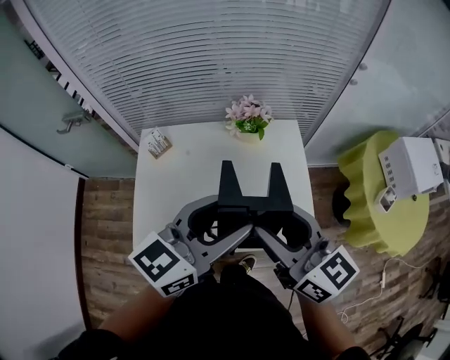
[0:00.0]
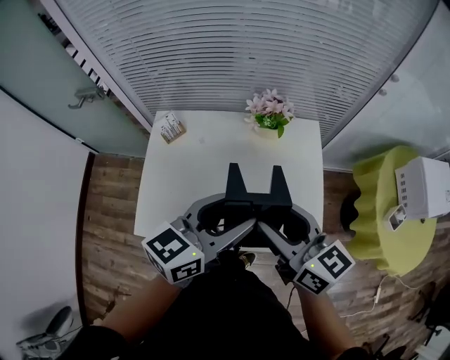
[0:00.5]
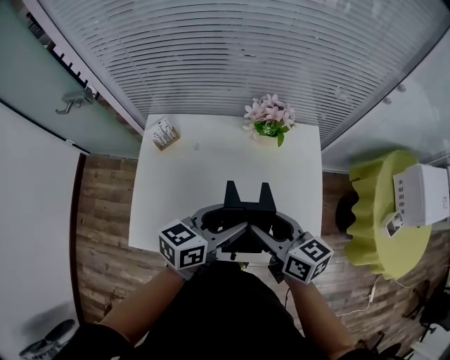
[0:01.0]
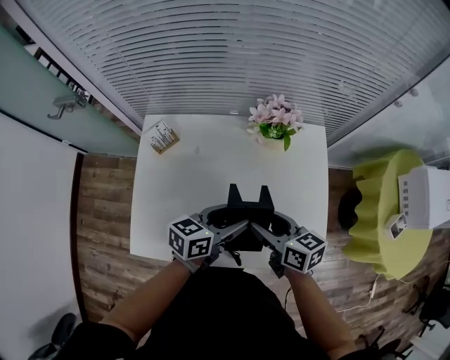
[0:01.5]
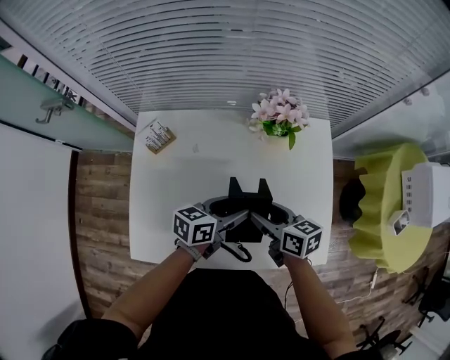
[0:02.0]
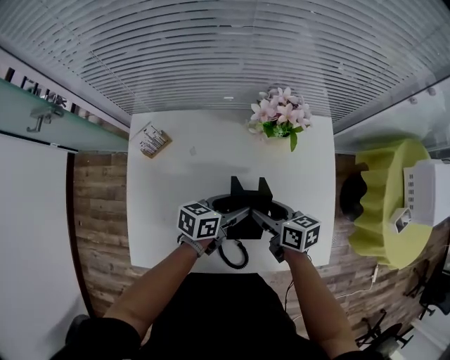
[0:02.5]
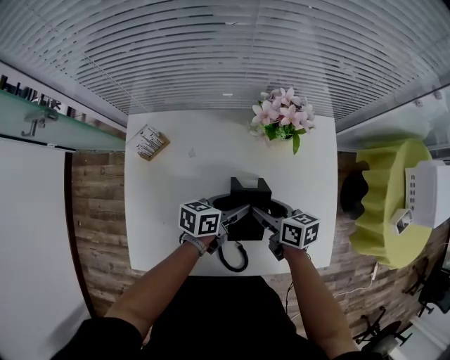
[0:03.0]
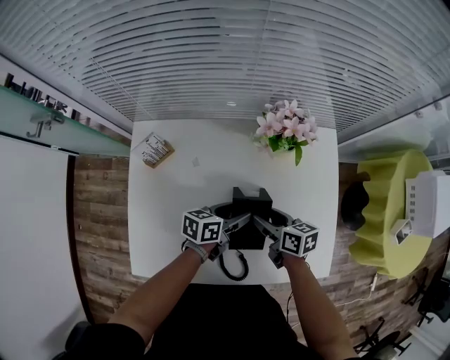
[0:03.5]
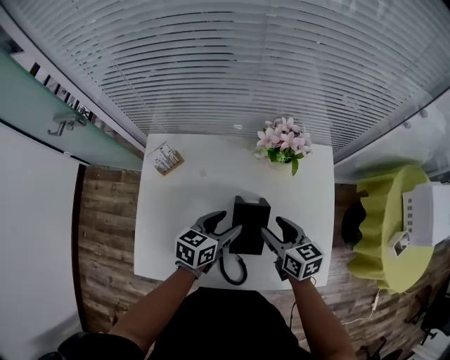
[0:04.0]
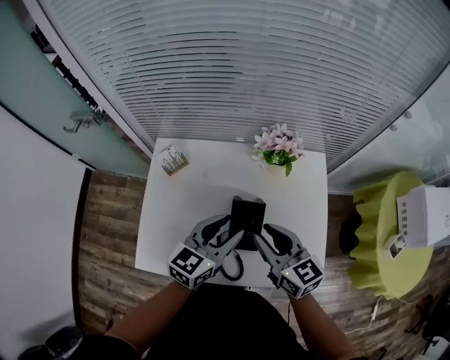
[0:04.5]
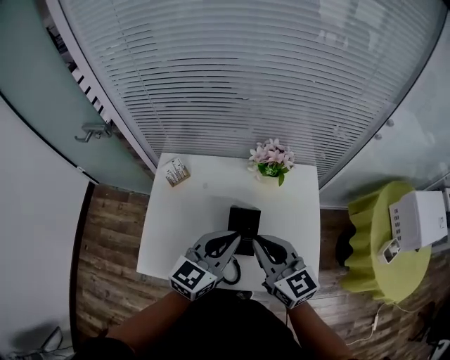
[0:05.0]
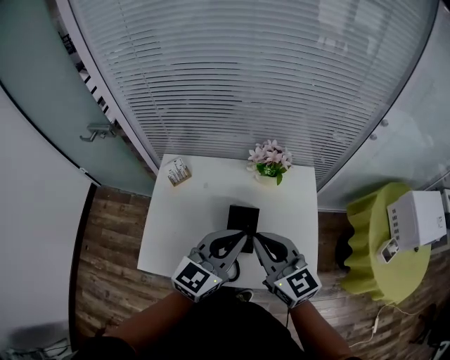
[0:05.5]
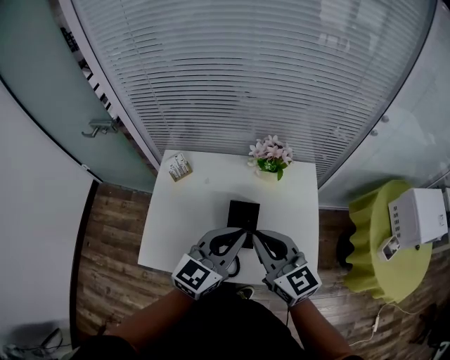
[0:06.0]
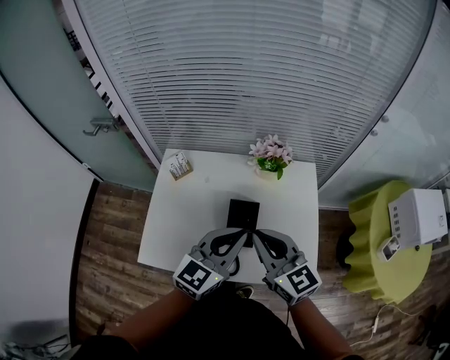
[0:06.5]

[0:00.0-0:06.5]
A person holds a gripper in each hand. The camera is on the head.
0:00.0 to 0:02.0: Both grippers travel together downward and forward, approximately 35 cm. The left gripper rotates approximately 40 degrees, while the right gripper swivels some 40 degrees.
0:02.0 to 0:04.5: Both grippers move upward, roughly 15 cm. The right gripper turns by some 30 degrees, and closes its fingers. The left gripper turns by about 30 degrees.
0:04.5 to 0:06.5: Both grippers move upward and backward, approximately 10 cm. The left gripper closes. The right gripper closes.

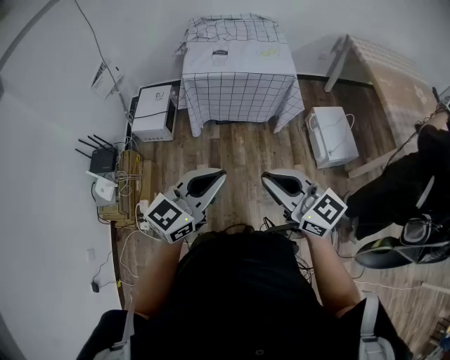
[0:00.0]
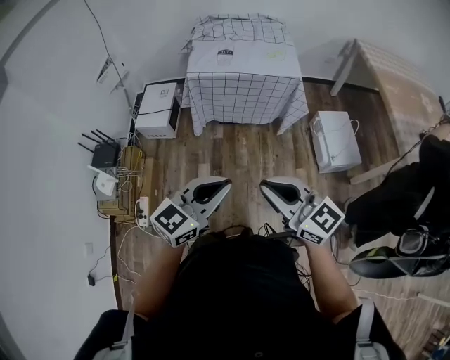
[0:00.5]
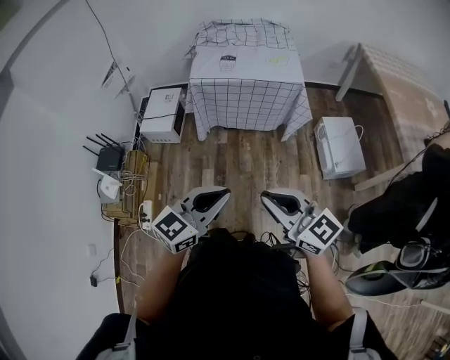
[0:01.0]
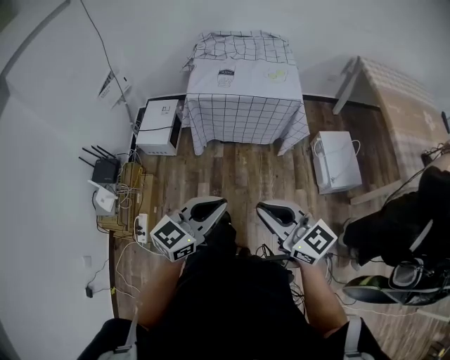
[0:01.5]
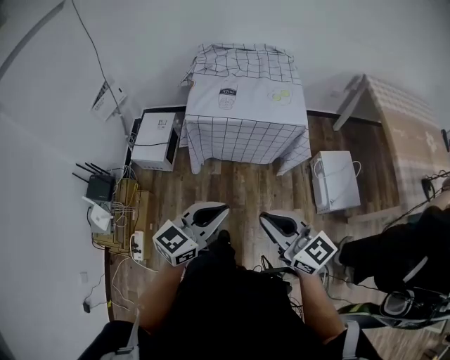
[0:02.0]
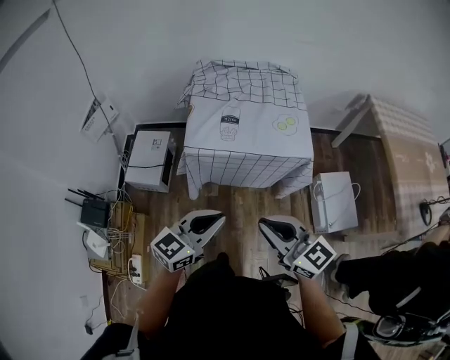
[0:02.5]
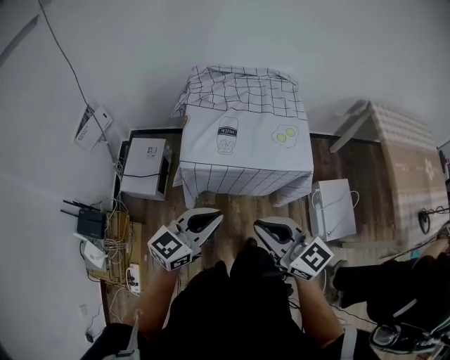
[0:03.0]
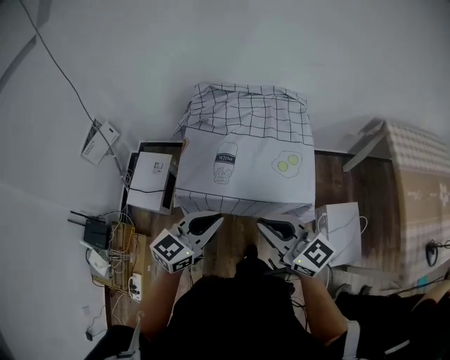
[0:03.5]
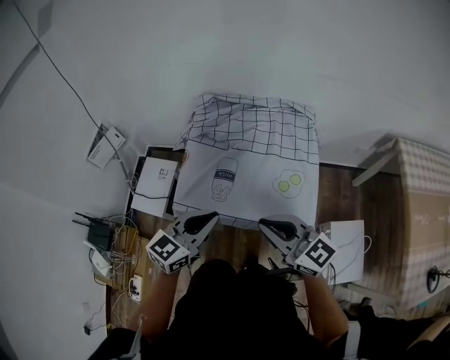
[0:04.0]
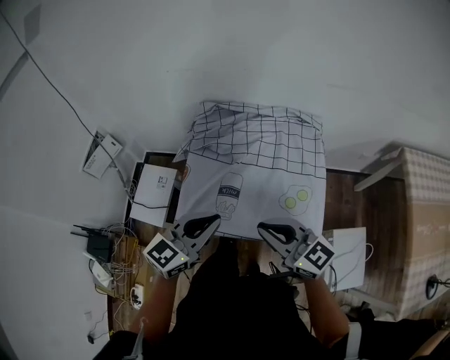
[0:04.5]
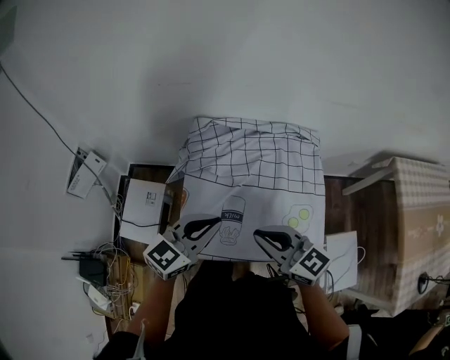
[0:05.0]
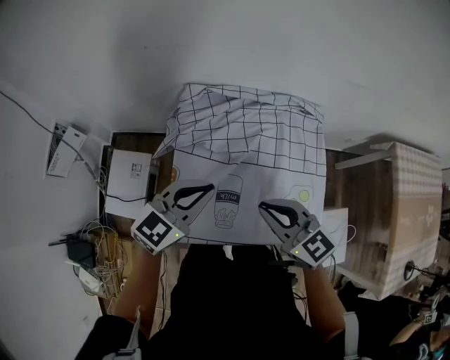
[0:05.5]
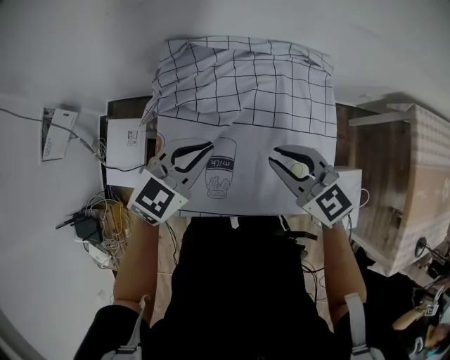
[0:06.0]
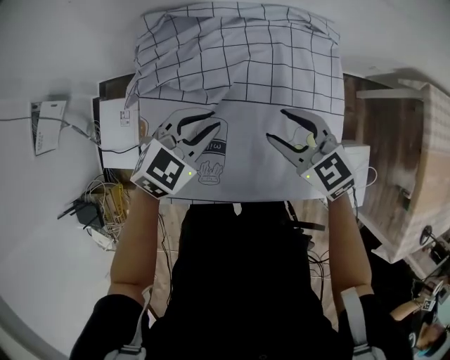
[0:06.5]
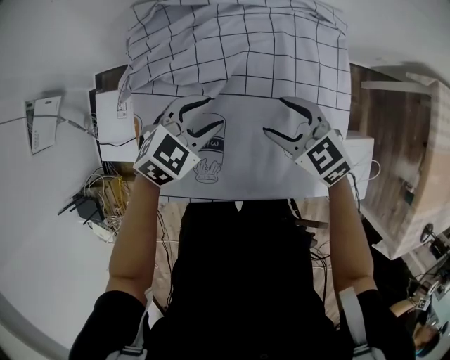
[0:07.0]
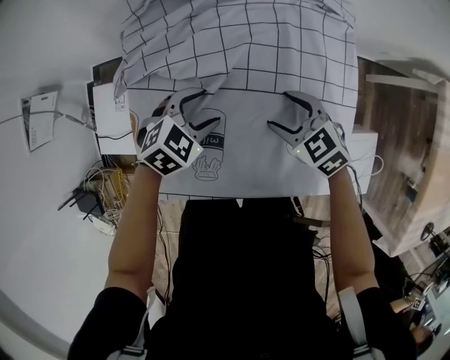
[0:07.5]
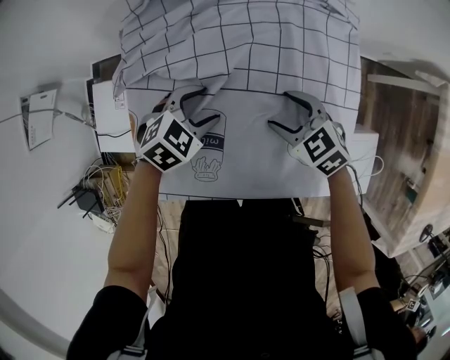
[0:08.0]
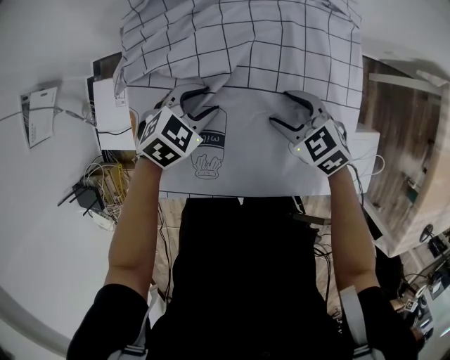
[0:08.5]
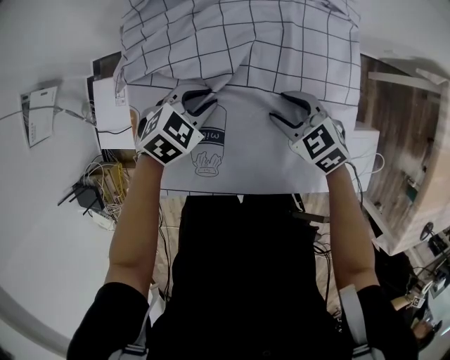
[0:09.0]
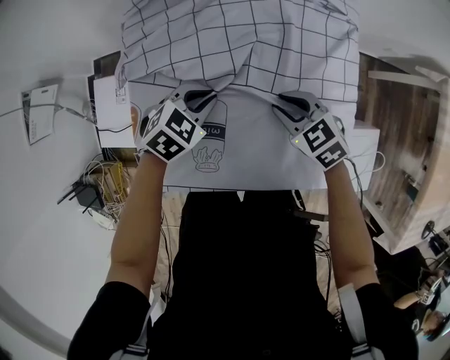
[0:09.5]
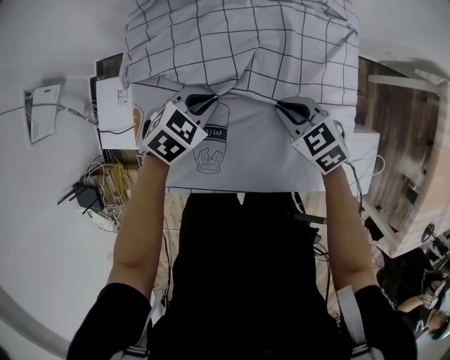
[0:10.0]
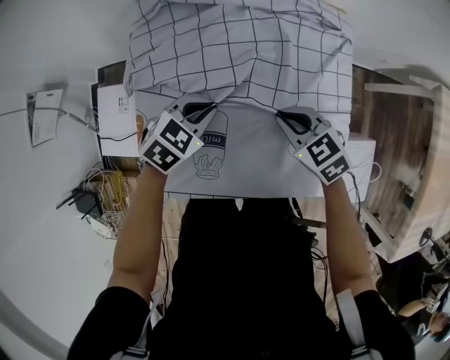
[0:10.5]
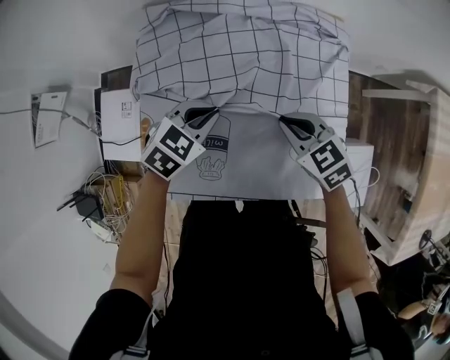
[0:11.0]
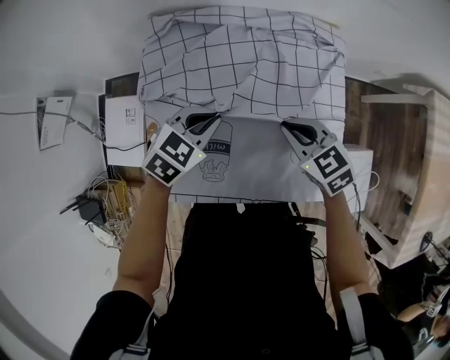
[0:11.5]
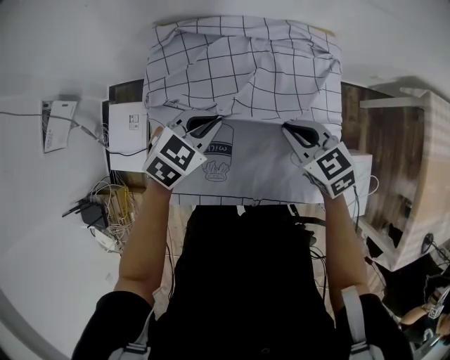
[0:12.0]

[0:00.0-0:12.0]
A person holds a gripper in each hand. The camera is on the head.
0:00.0 to 0:02.0: Both grippers move forward, some 15 cm.
0:02.0 to 0:04.0: The two grippers travel together, forward, some 40 cm.
0:04.0 to 0:06.0: The grippers both shift forward by about 25 cm. The right gripper rotates about 30 degrees; the left gripper turns by roughly 20 degrees.
0:06.0 to 0:08.0: The grippers both shift downward by some 20 cm. The left gripper changes its angle by roughly 30 degrees, and opens its fingers, while the right gripper swivels some 20 degrees, and opens.
0:08.0 to 0:10.0: The left gripper closes up. Meanwhile the right gripper closes its fingers.
0:10.0 to 0:12.0: Both grippers travel together upward, about 10 cm.

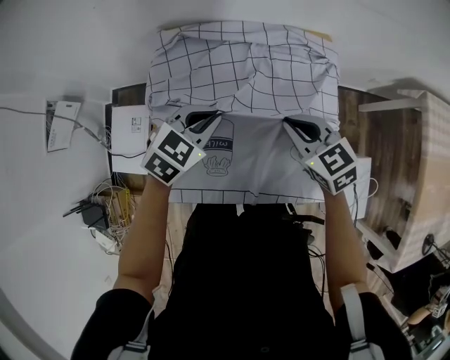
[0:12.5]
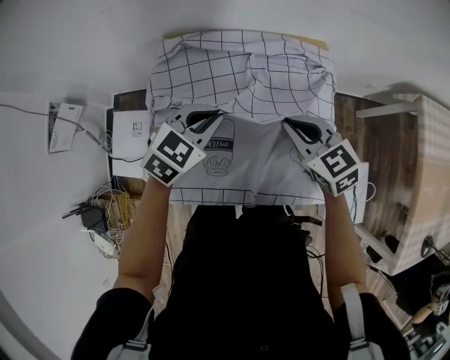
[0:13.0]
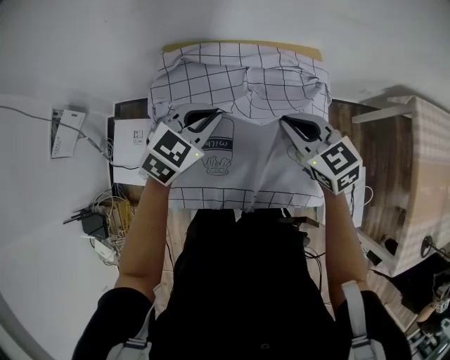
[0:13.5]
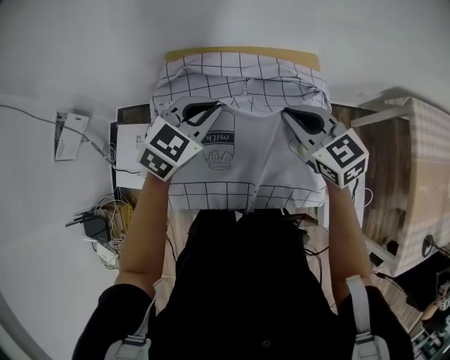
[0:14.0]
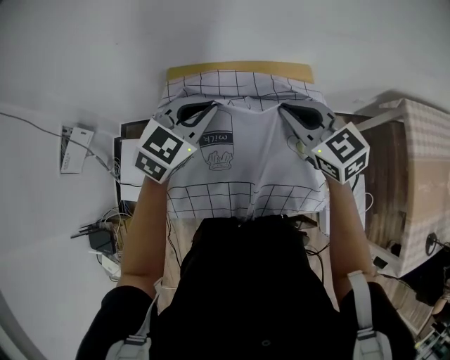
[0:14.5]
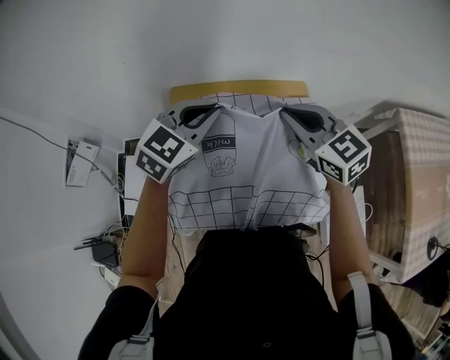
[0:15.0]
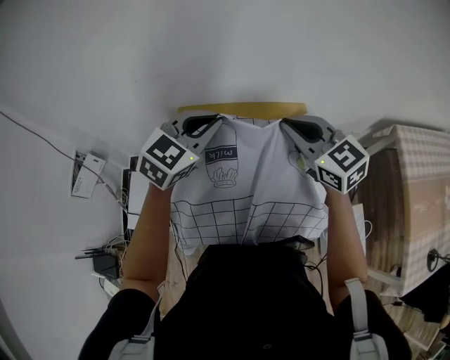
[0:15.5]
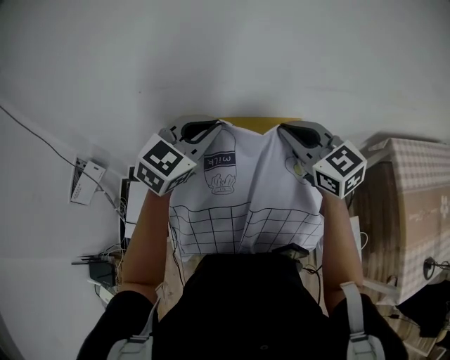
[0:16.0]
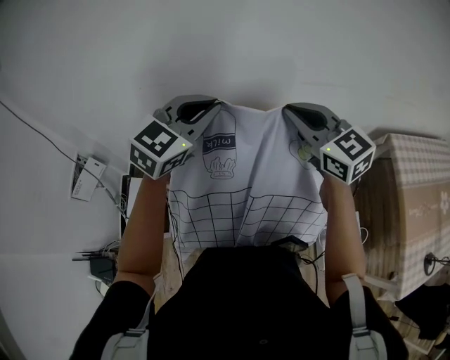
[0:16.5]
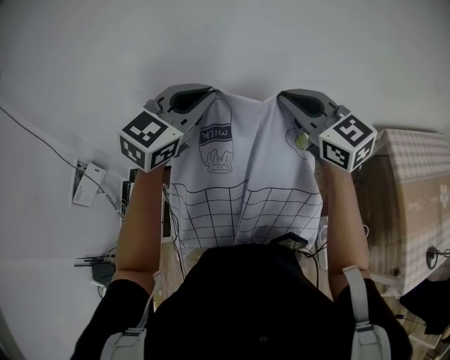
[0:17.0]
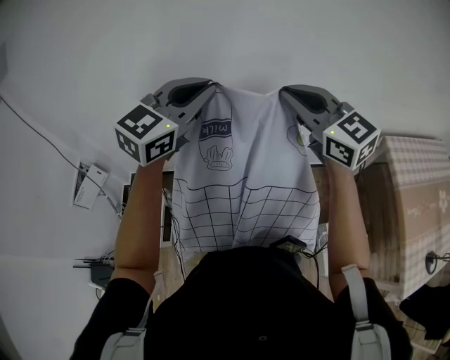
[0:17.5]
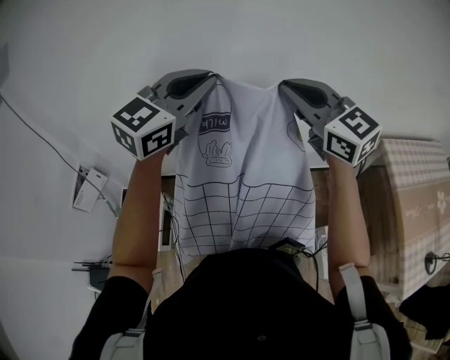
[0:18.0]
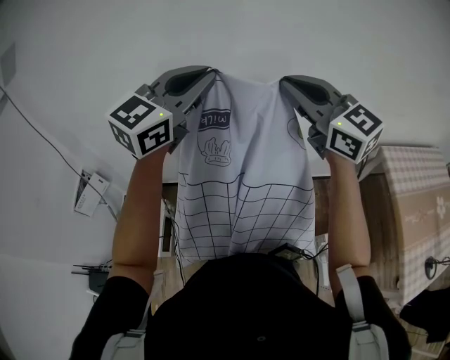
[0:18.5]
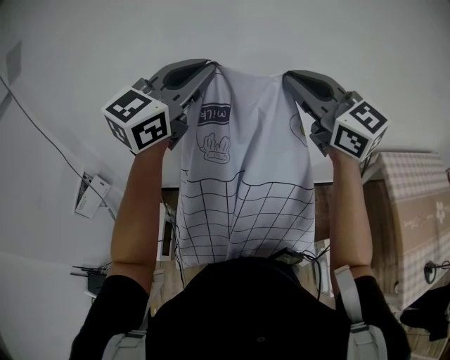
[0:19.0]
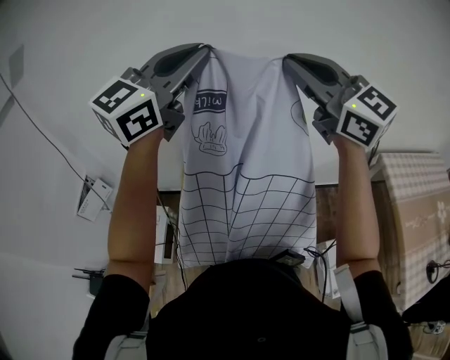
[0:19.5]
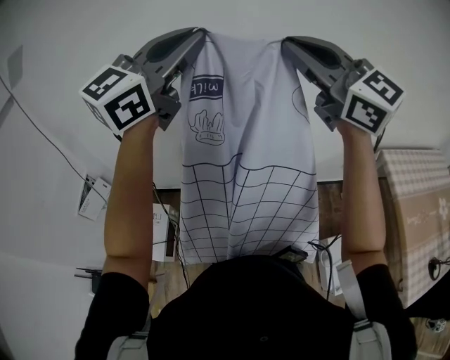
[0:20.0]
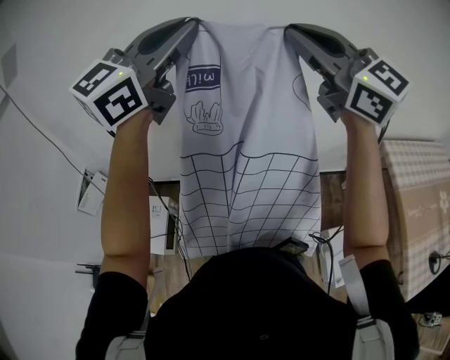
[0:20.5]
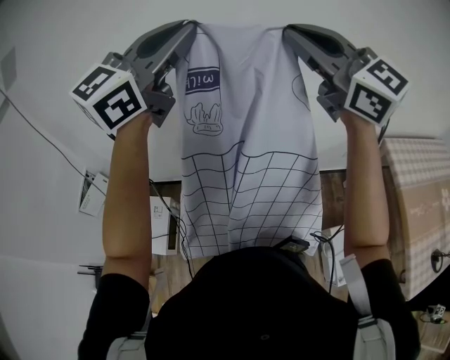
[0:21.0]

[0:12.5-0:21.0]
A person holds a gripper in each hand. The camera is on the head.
0:12.5 to 0:14.5: Both grippers travel together upward, roughly 15 cm.
0:14.5 to 0:16.5: Both grippers move upward, approximately 15 cm.
0:16.5 to 0:19.0: Both grippers travel together upward, some 25 cm. The left gripper swivels some 20 degrees; the right gripper changes its angle by roughly 20 degrees.
0:19.0 to 0:21.0: The grippers stay close to where they were, moving slightly.
